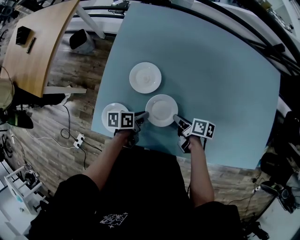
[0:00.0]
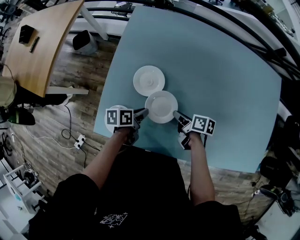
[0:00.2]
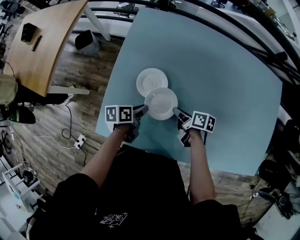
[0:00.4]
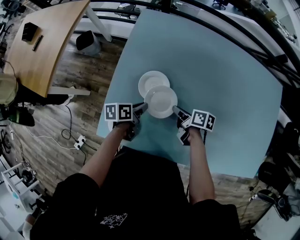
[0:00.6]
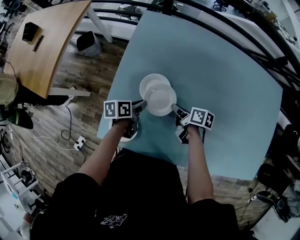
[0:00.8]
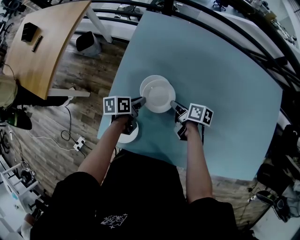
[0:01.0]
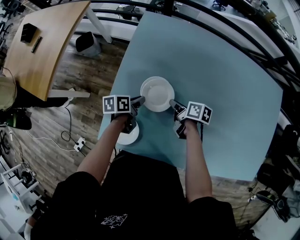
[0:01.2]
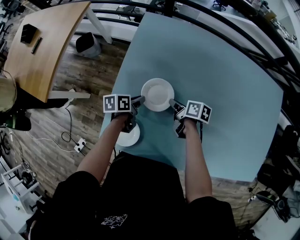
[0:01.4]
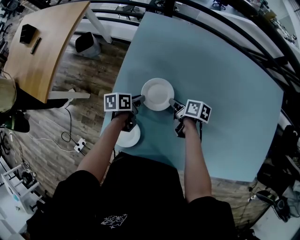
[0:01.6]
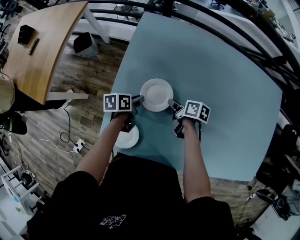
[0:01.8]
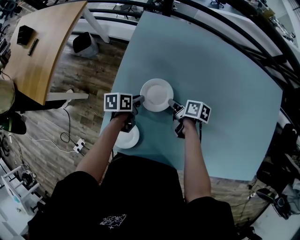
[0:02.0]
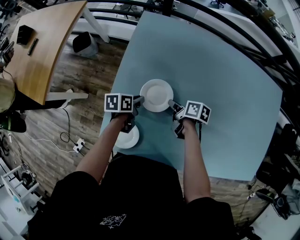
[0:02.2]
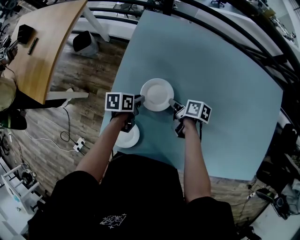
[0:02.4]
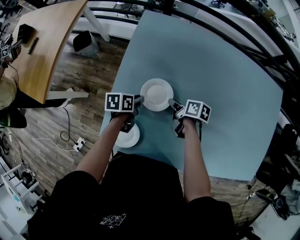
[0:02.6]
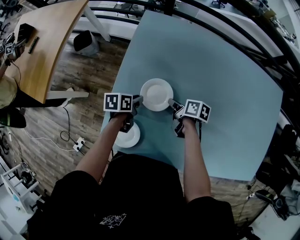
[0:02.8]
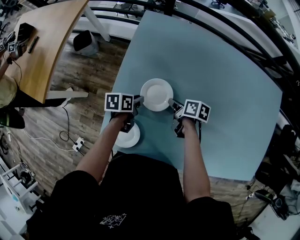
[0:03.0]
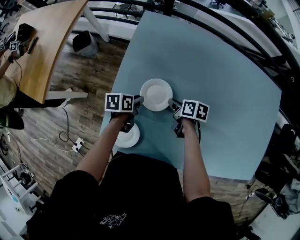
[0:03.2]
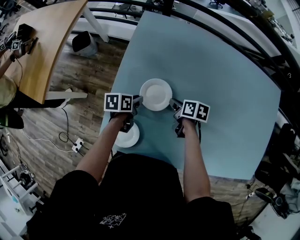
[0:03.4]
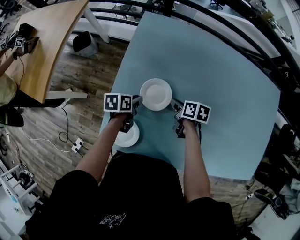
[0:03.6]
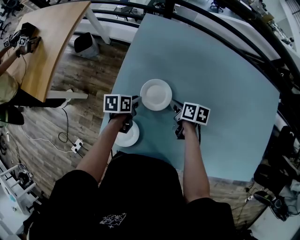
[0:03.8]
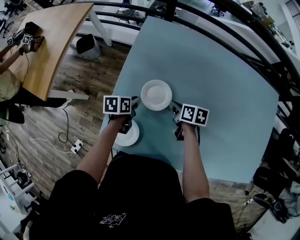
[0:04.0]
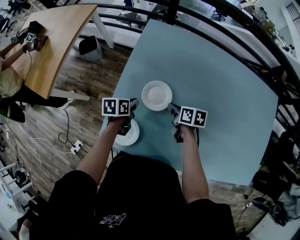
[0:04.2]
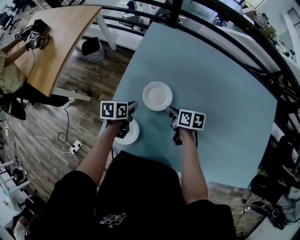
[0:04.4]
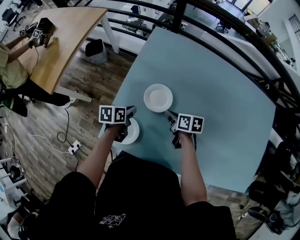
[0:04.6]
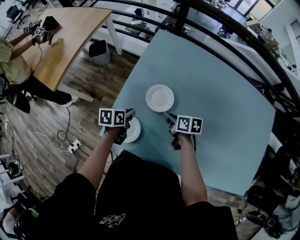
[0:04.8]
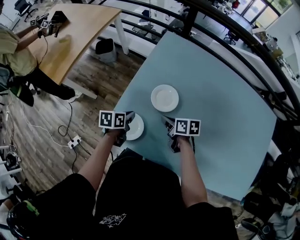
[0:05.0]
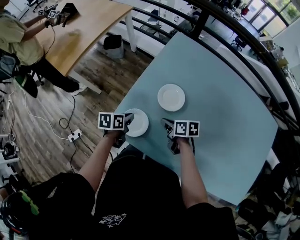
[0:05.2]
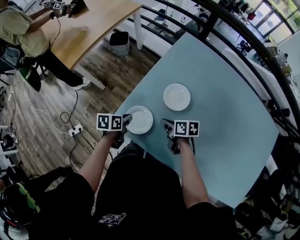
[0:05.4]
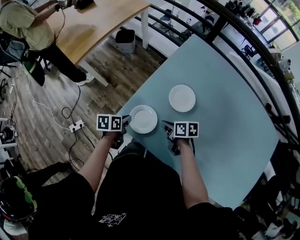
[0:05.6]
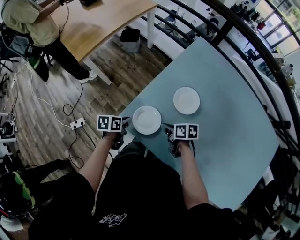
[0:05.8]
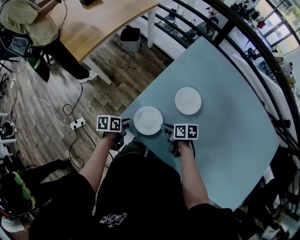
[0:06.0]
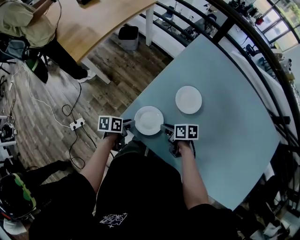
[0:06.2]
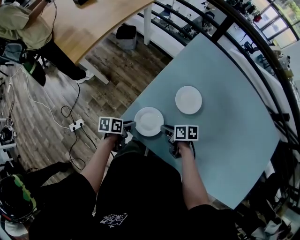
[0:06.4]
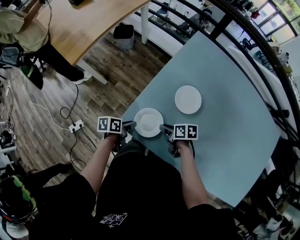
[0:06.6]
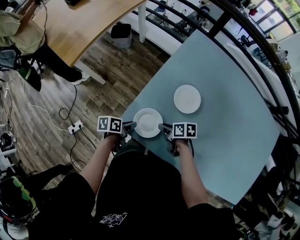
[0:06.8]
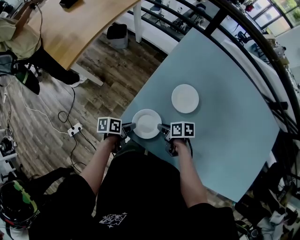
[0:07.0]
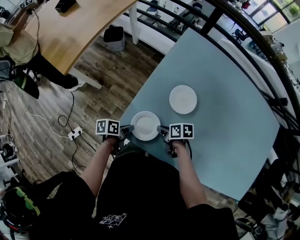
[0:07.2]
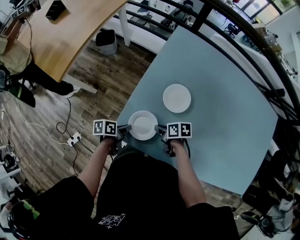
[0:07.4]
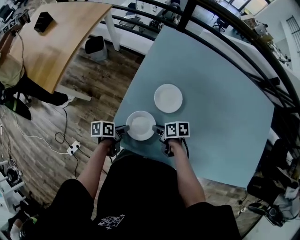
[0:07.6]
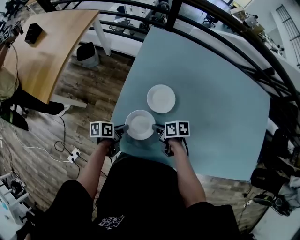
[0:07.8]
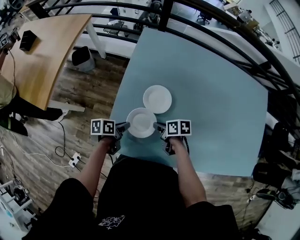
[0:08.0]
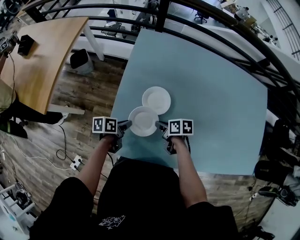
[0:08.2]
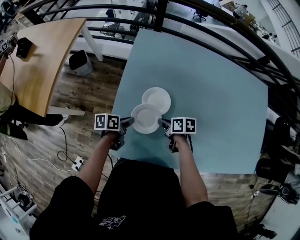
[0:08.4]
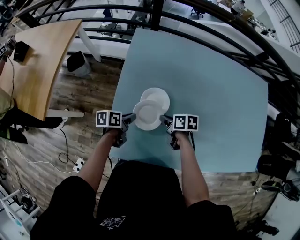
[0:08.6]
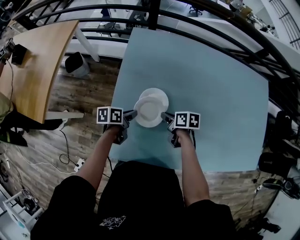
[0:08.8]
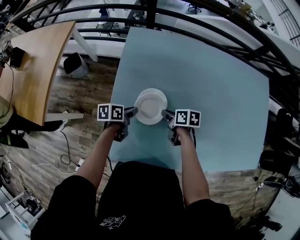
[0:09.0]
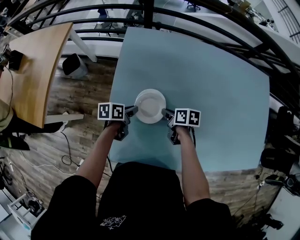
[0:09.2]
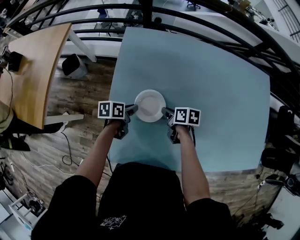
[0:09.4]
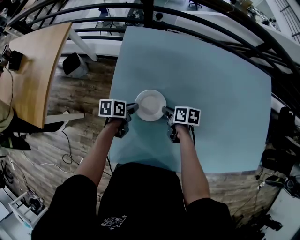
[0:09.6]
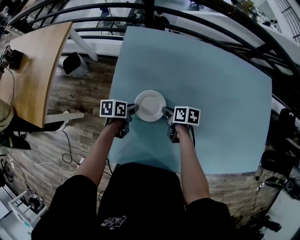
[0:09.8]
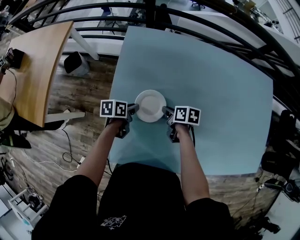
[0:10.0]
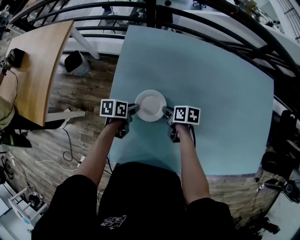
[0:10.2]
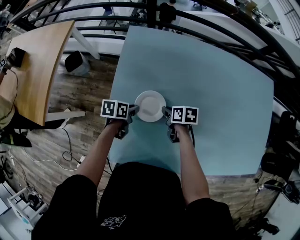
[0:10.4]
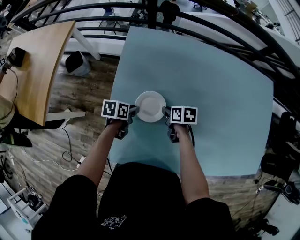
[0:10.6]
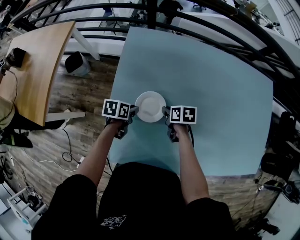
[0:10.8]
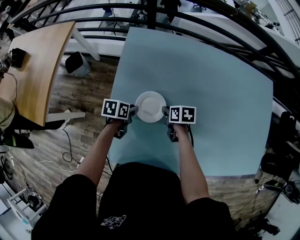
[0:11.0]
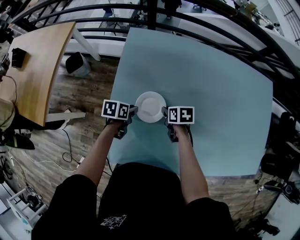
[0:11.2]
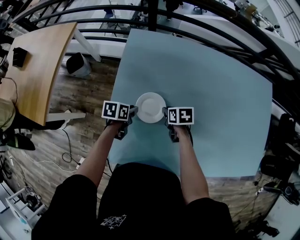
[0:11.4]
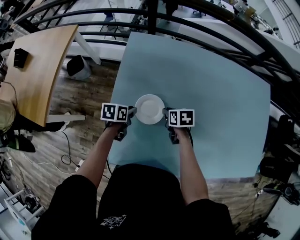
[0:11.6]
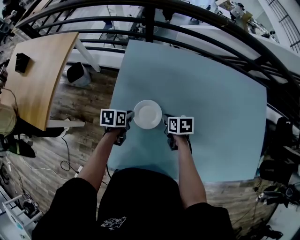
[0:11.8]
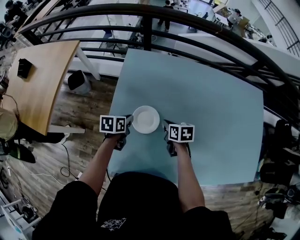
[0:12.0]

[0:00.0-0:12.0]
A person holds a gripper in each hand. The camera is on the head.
0:00.0 to 0:01.6: The grippers both shift forward and to the left by approximately 20 cm.
0:01.6 to 0:03.0: The grippers make only small movements.
0:03.0 to 0:04.4: The right gripper moves approximately 5 cm. Meanwhile the left gripper shifts by roughly 5 cm.
0:04.4 to 0:06.0: Both grippers travel together to the left and backward, some 20 cm. The right gripper rotates about 30 degrees. Meanwhile the left gripper rotates approximately 20 degrees.
0:06.0 to 0:07.6: The left gripper changes place by roughly 5 cm.
0:07.6 to 0:09.0: The left gripper moves roughly 20 cm, while the right gripper shifts by approximately 15 cm, and turns by about 20 degrees.
0:09.0 to 0:10.4: There are only small adjustments of the grippers.
0:10.4 to 0:12.0: The two grippers go some 5 cm upward.

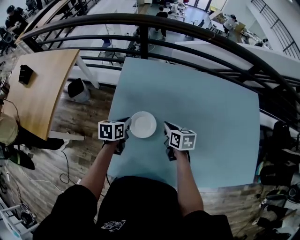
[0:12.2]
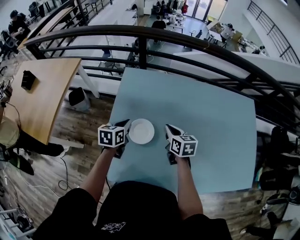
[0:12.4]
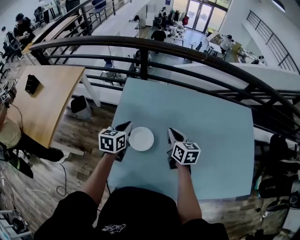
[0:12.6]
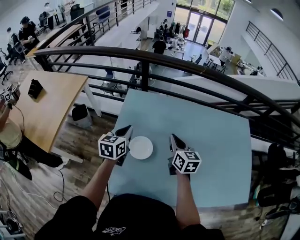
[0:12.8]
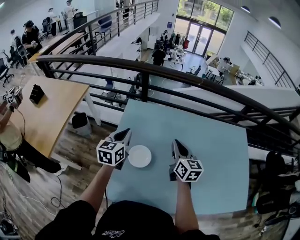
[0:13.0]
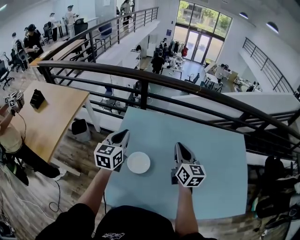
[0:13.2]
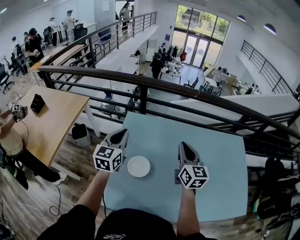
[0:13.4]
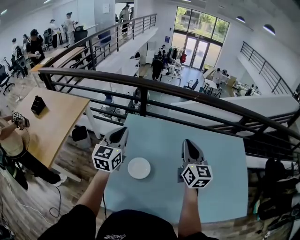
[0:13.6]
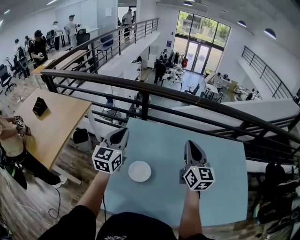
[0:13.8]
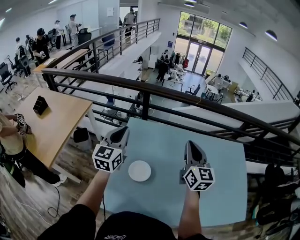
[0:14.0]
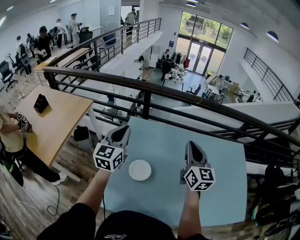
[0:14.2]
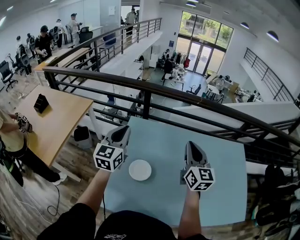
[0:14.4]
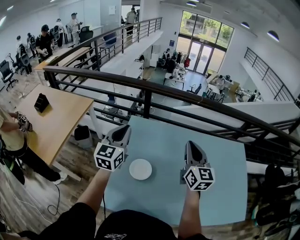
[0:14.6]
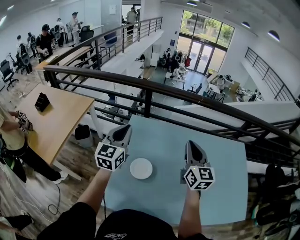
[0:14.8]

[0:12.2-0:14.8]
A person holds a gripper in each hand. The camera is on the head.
0:12.2 to 0:13.4: The two grippers go about 30 cm upward. The left gripper tilts its fingers approximately 40 degrees upward, while the right gripper points its fingers some 40 degrees further upward.
0:13.4 to 0:14.8: The left gripper moves some 5 cm, while the right gripper moves some 5 cm.

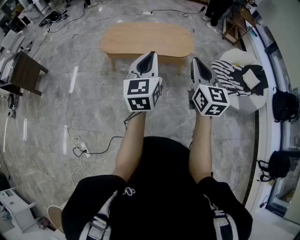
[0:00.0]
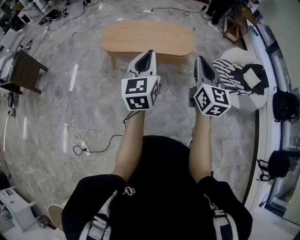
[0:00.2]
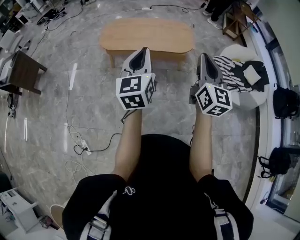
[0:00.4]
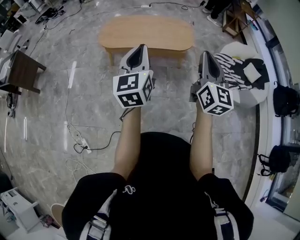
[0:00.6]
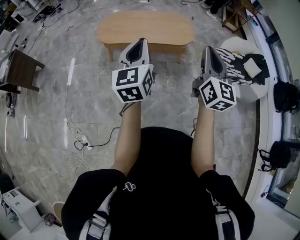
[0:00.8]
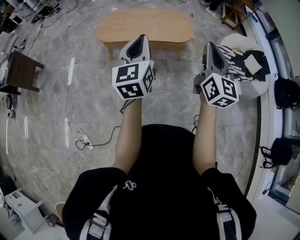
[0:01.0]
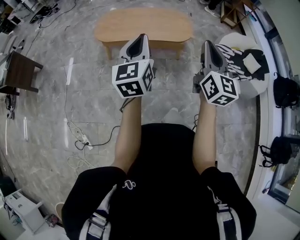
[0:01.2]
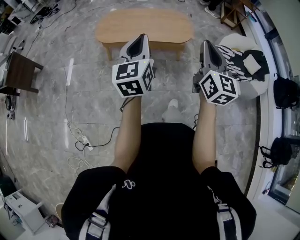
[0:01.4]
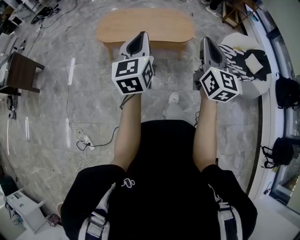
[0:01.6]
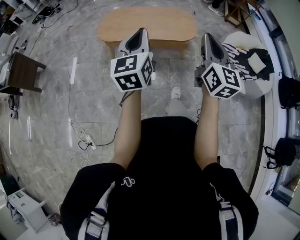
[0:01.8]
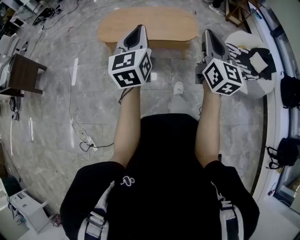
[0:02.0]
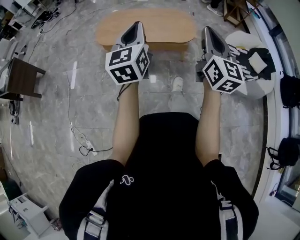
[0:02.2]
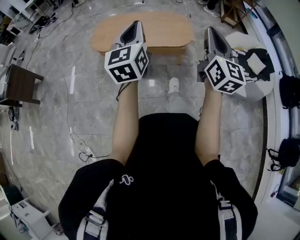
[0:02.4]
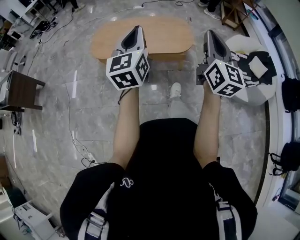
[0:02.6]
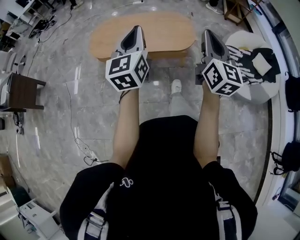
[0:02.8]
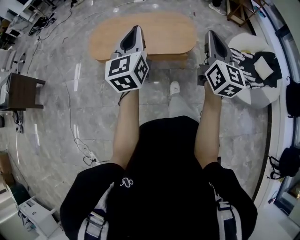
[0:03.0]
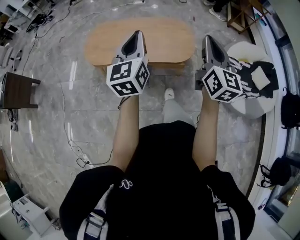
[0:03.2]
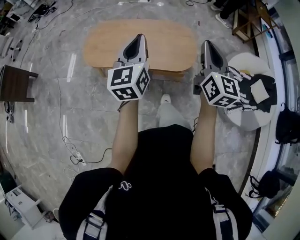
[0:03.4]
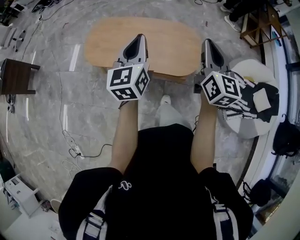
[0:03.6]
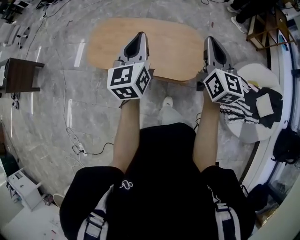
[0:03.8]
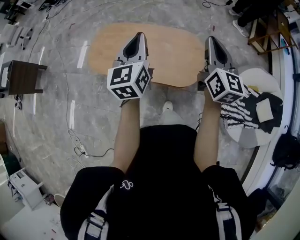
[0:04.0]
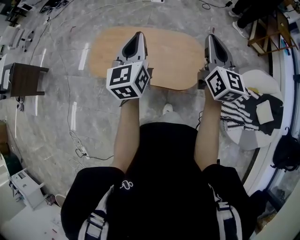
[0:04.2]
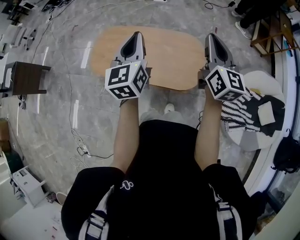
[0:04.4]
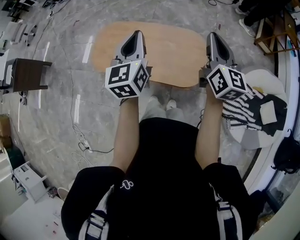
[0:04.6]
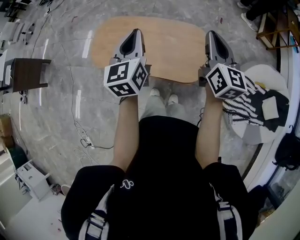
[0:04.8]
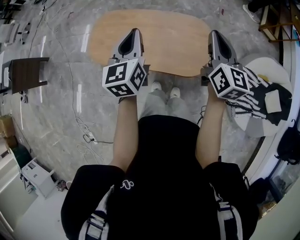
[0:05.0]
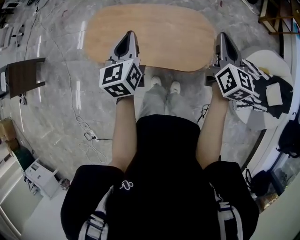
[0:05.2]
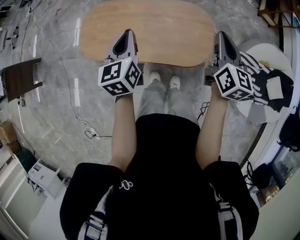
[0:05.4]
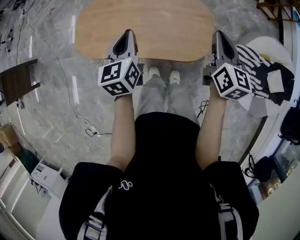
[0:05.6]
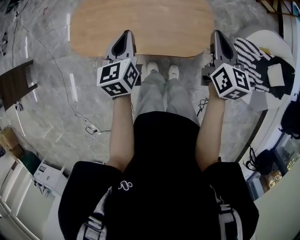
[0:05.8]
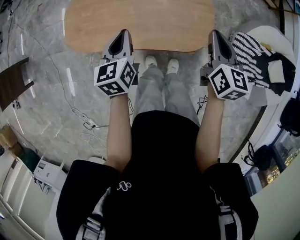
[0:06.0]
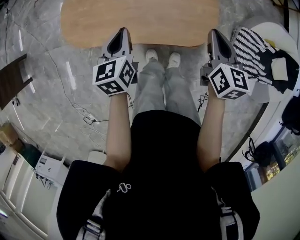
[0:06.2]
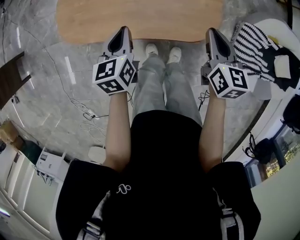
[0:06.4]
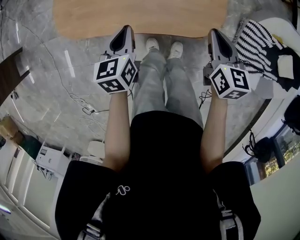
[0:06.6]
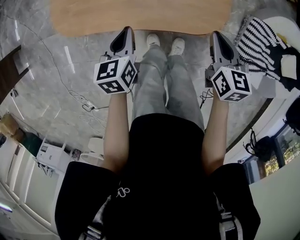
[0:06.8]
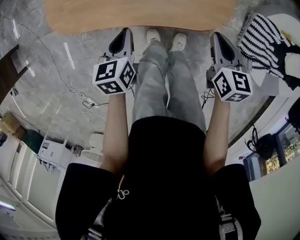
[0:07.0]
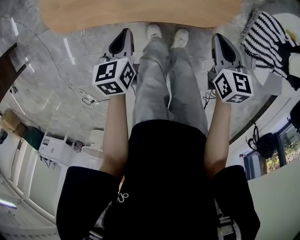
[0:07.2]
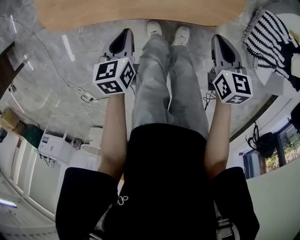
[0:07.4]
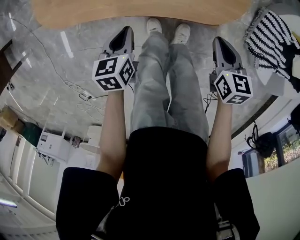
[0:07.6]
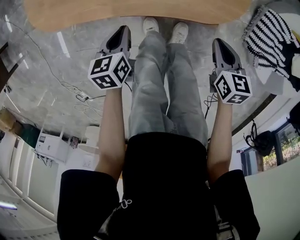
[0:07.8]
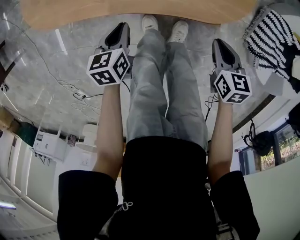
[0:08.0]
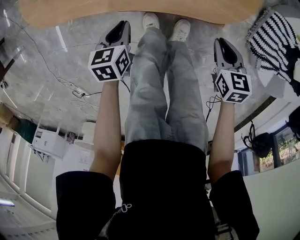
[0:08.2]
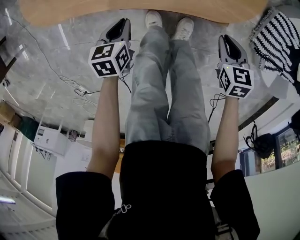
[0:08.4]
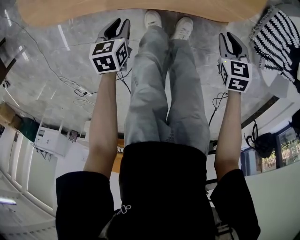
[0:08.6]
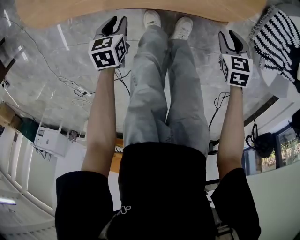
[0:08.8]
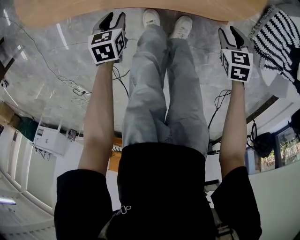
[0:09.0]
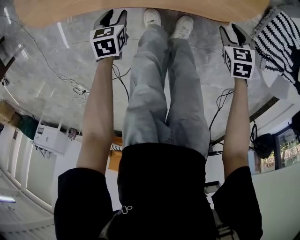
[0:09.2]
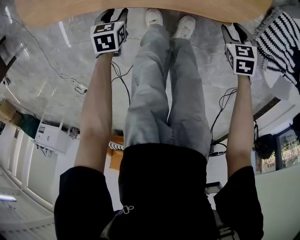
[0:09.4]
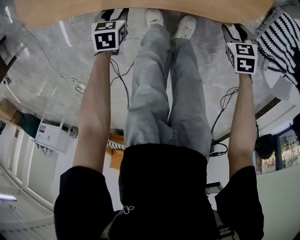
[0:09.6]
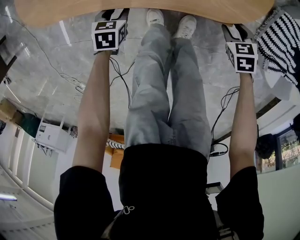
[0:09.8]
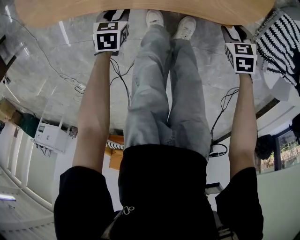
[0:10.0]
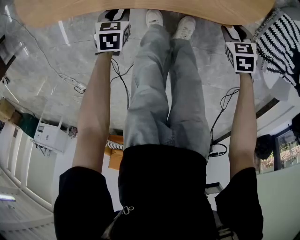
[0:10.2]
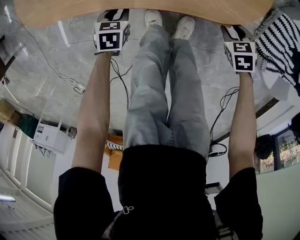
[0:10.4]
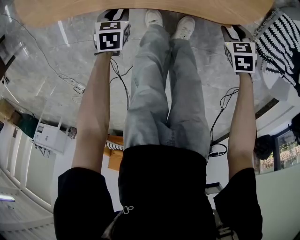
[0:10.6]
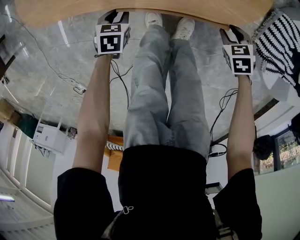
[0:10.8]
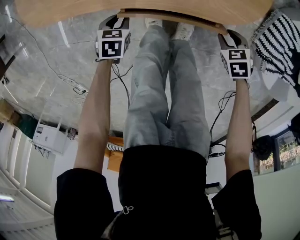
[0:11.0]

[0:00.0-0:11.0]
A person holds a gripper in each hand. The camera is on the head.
0:00.0 to 0:01.6: The left gripper moves roughly 5 cm.
0:01.6 to 0:03.2: The two grippers go approximately 30 cm forward.
0:03.2 to 0:04.8: Both grippers move forward, about 30 cm.
0:04.8 to 0:06.2: Both grippers travel together downward, roughly 25 cm. The right gripper turns by about 30 degrees. The left gripper swivels roughly 30 degrees.
0:06.2 to 0:07.8: The right gripper moves downward and backward, approximately 30 cm, and turns by some 30 degrees; the left gripper goes some 30 cm downward, and turns by approximately 20 degrees.
0:07.8 to 0:09.4: The grippers both shift downward by roughly 15 cm. The right gripper changes its angle by about 30 degrees, and opens its fingers. Meanwhile the left gripper changes its angle by roughly 20 degrees, and opens up.
0:09.4 to 0:11.0: The grippers make only small movements.
